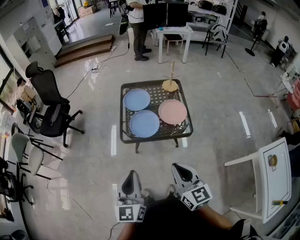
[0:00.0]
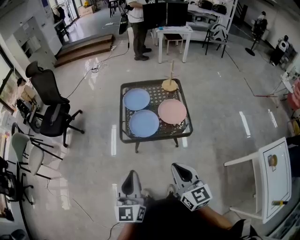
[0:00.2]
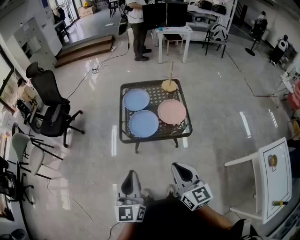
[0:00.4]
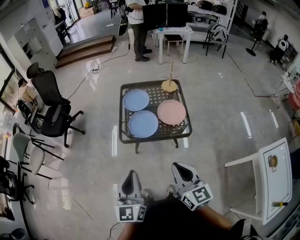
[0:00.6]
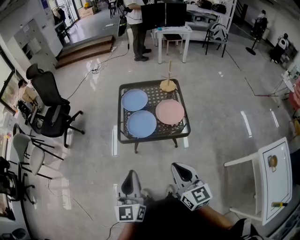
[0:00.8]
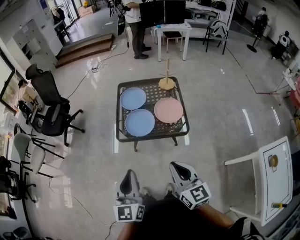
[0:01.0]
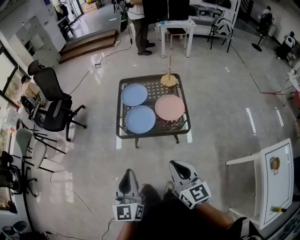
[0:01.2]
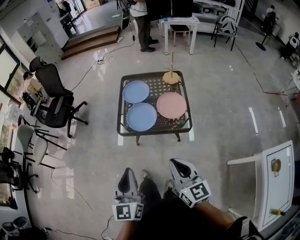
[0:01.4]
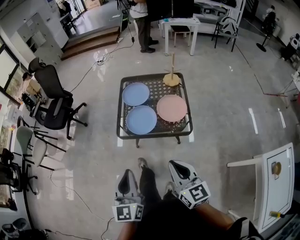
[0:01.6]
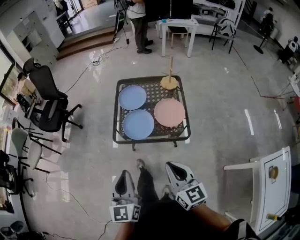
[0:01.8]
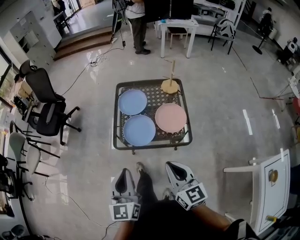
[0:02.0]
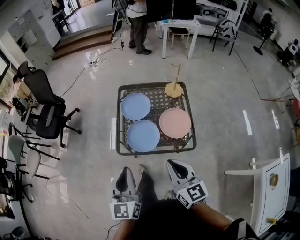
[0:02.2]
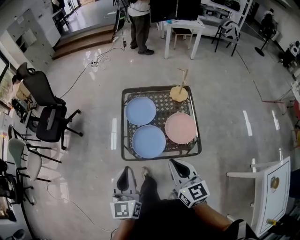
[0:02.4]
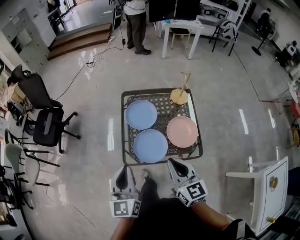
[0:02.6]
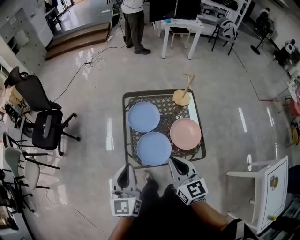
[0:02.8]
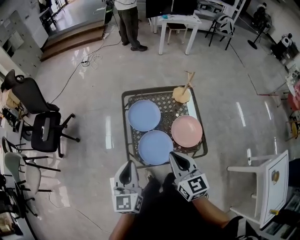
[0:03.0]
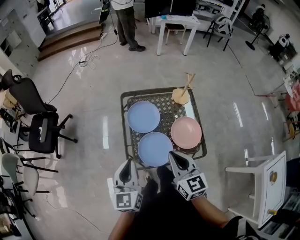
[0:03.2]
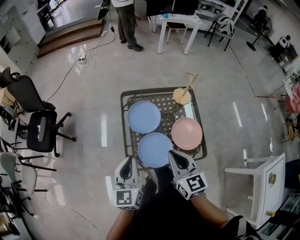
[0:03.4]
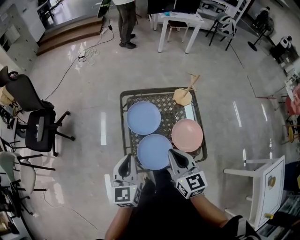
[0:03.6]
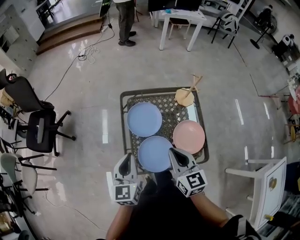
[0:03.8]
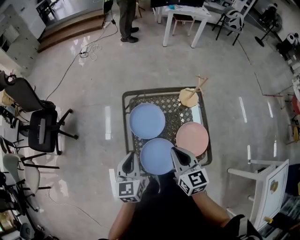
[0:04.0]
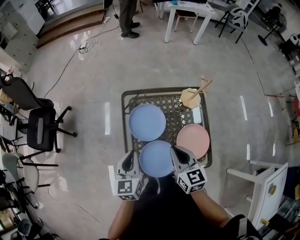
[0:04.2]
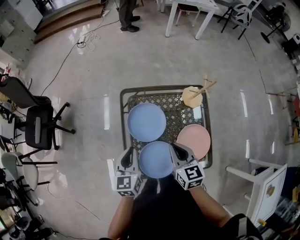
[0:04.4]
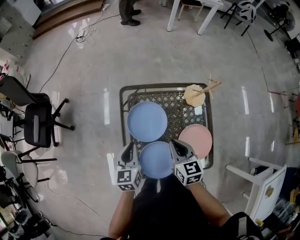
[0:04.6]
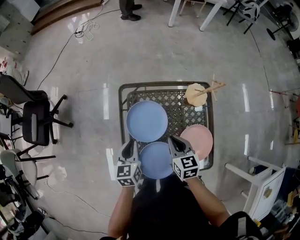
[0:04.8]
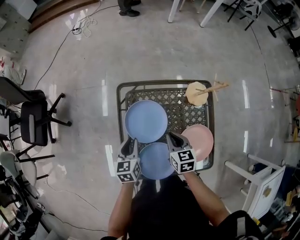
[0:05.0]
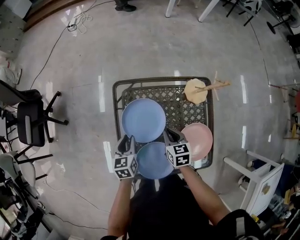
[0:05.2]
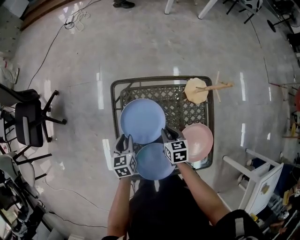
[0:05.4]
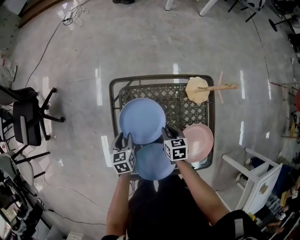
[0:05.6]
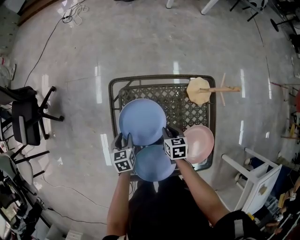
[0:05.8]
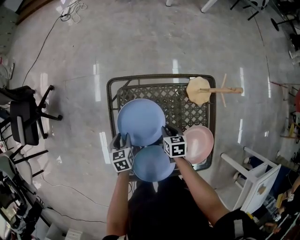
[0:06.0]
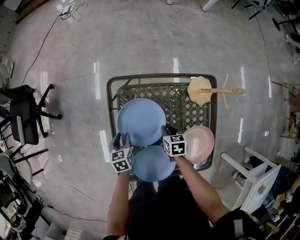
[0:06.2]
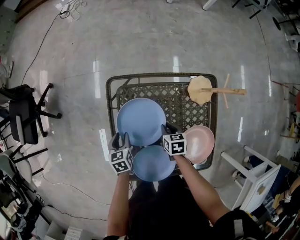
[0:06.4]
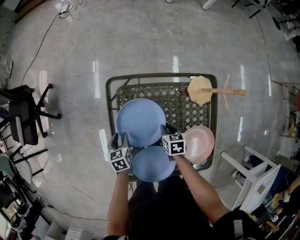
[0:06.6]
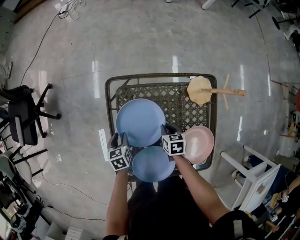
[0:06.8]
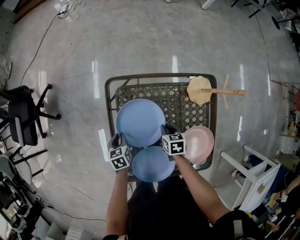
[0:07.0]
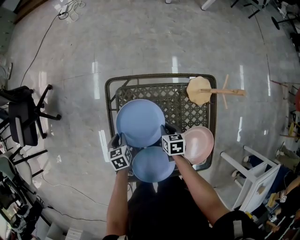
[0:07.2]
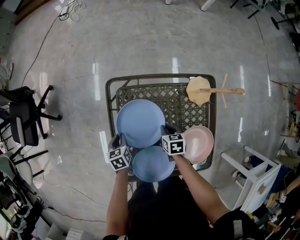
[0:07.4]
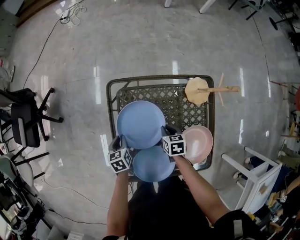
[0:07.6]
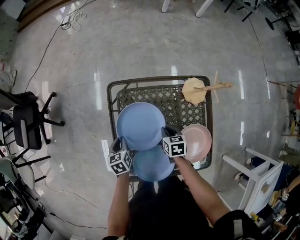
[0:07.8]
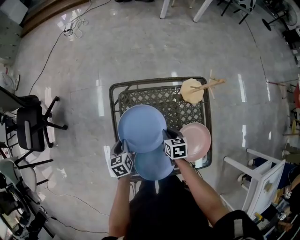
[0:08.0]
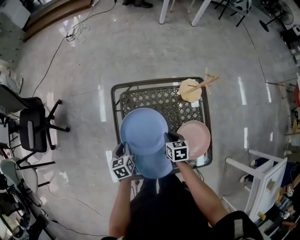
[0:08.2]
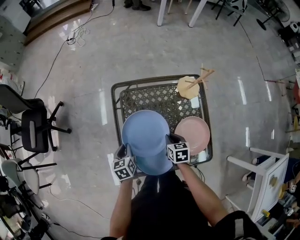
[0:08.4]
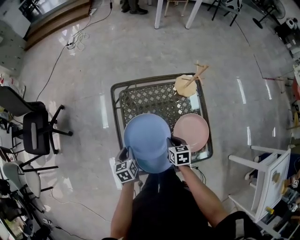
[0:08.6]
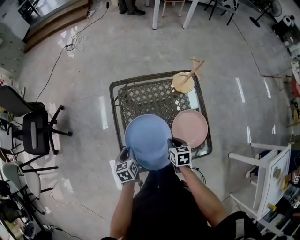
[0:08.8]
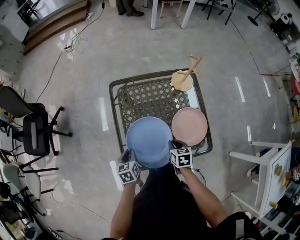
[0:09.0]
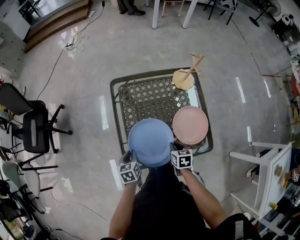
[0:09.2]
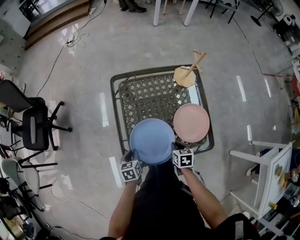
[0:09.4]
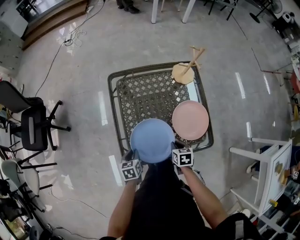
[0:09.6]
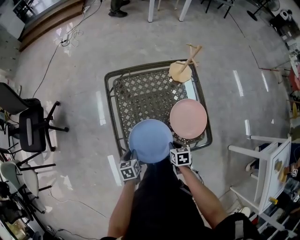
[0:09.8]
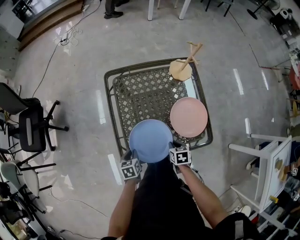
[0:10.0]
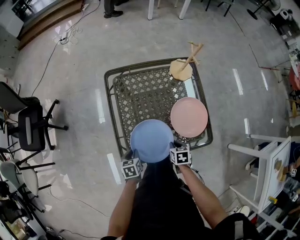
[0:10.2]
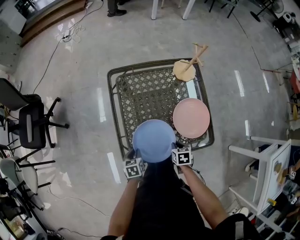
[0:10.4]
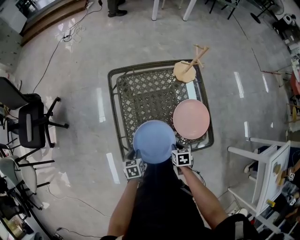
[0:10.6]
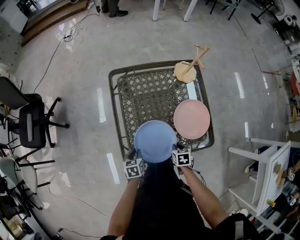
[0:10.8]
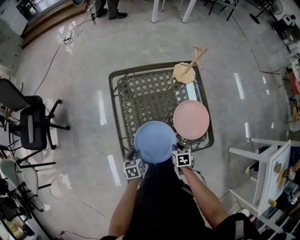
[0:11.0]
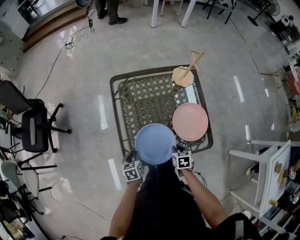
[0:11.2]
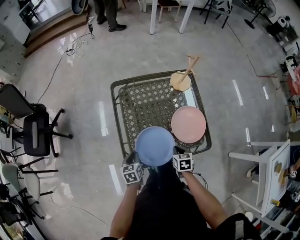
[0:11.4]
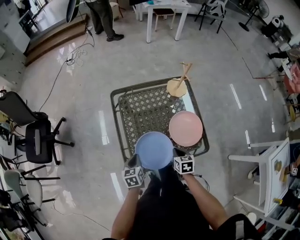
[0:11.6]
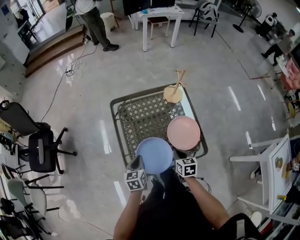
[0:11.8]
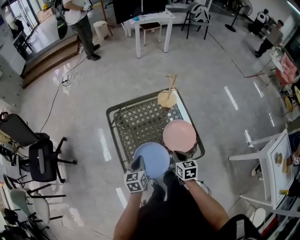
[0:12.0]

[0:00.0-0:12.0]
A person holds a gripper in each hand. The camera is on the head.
0:00.0 to 0:01.6: Both grippers travel together to the right, roughly 5 cm.
0:01.6 to 0:03.0: Both grippers move forward, about 35 cm.
0:03.0 to 0:04.4: The two grippers go some 25 cm forward and downward.
0:04.4 to 0:06.0: Both grippers travel together downward, approximately 25 cm. The left gripper rotates roughly 30 degrees, and opens up. Meanwhile the right gripper points its fingers some 30 degrees further downward.
0:06.0 to 0:07.6: The left gripper closes its fingers.
0:07.6 to 0:09.0: The left gripper shifts about 20 cm backward and upward. Meanwhile the right gripper travels backward by approximately 20 cm.
0:09.0 to 0:10.4: Both grippers move downward and backward, roughly 10 cm.
0:10.4 to 0:12.0: Both grippers travel together upward, some 20 cm. The right gripper swivels approximately 30 degrees; the left gripper rotates about 30 degrees.

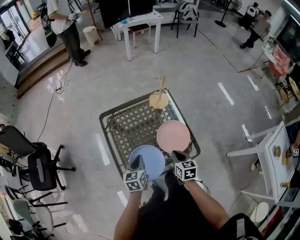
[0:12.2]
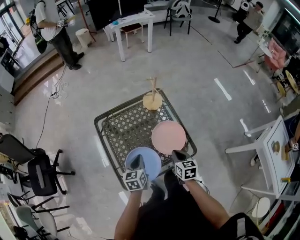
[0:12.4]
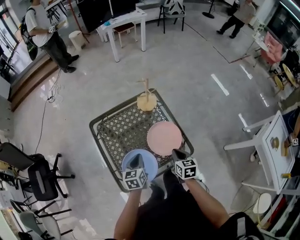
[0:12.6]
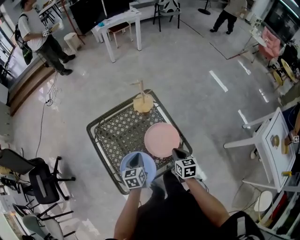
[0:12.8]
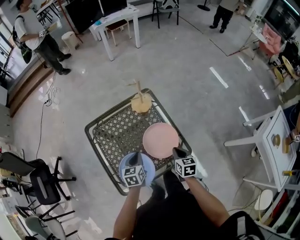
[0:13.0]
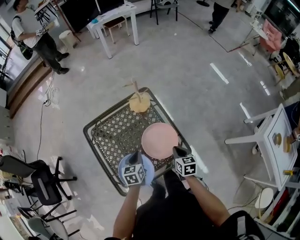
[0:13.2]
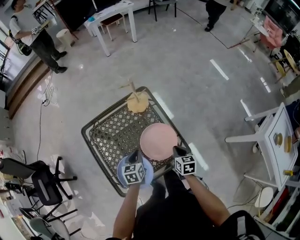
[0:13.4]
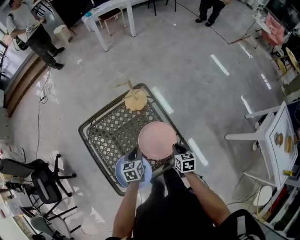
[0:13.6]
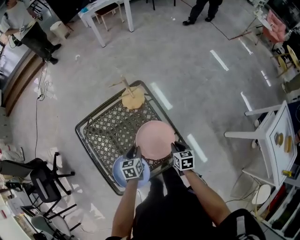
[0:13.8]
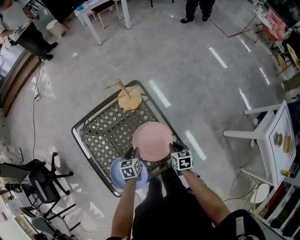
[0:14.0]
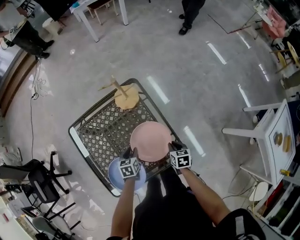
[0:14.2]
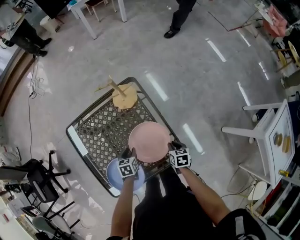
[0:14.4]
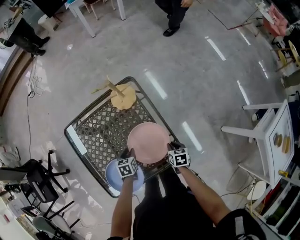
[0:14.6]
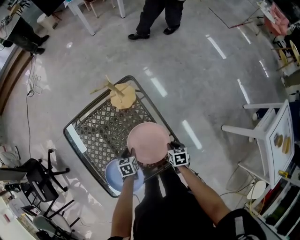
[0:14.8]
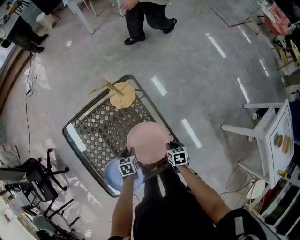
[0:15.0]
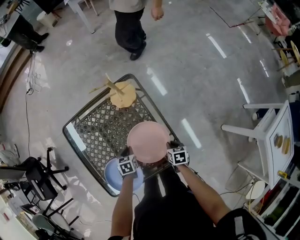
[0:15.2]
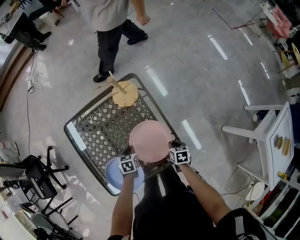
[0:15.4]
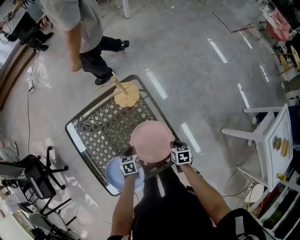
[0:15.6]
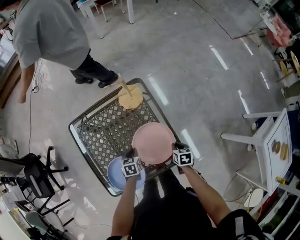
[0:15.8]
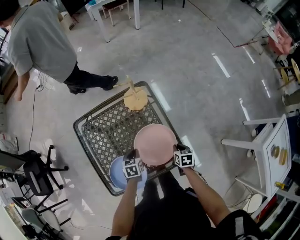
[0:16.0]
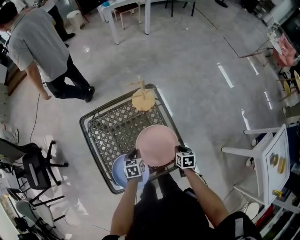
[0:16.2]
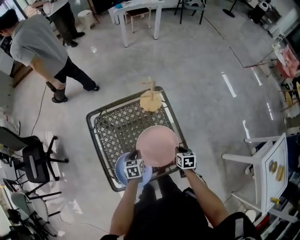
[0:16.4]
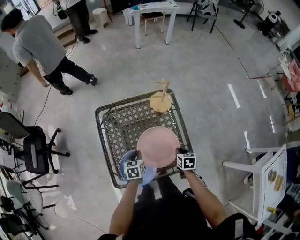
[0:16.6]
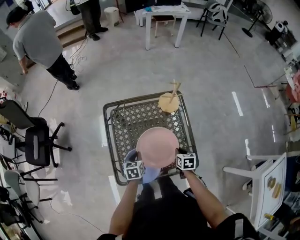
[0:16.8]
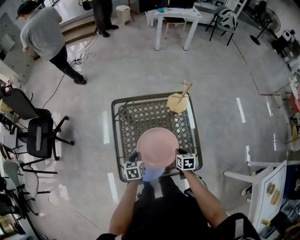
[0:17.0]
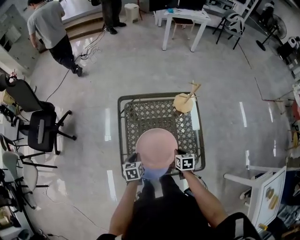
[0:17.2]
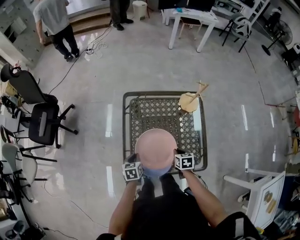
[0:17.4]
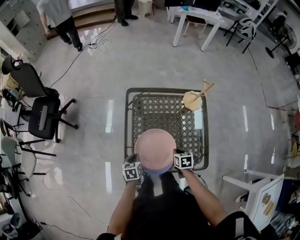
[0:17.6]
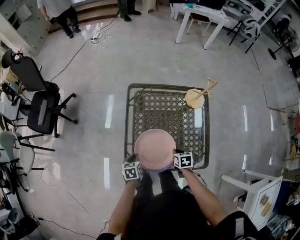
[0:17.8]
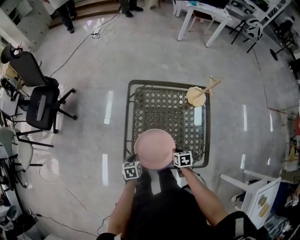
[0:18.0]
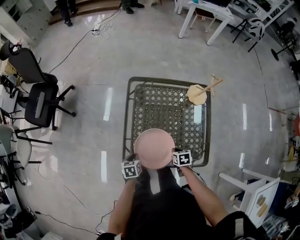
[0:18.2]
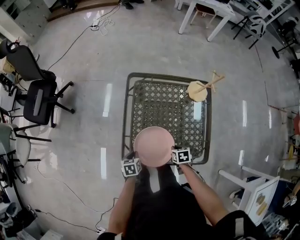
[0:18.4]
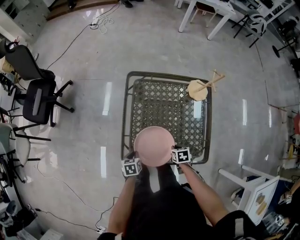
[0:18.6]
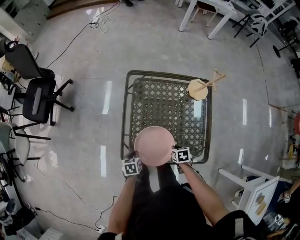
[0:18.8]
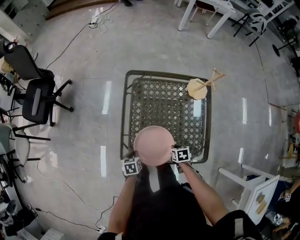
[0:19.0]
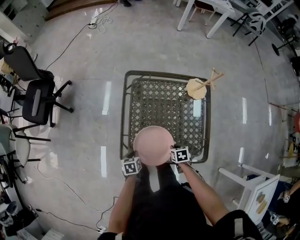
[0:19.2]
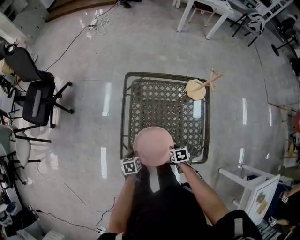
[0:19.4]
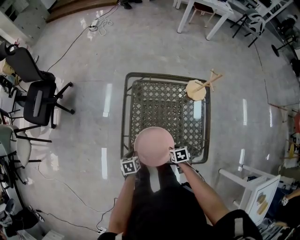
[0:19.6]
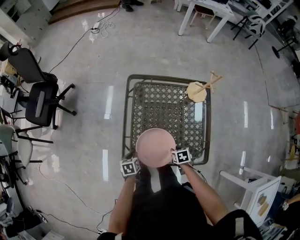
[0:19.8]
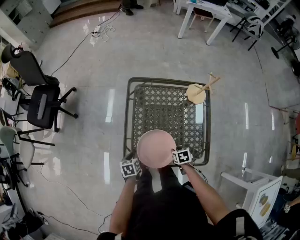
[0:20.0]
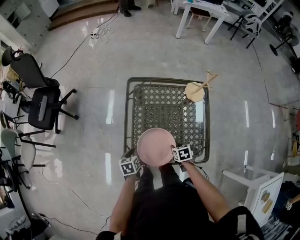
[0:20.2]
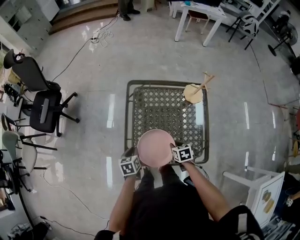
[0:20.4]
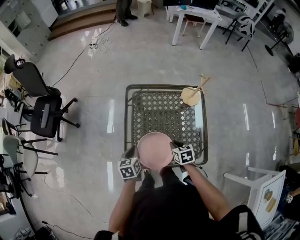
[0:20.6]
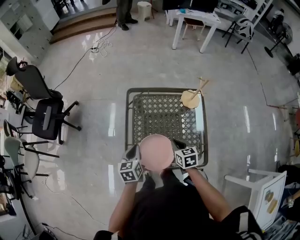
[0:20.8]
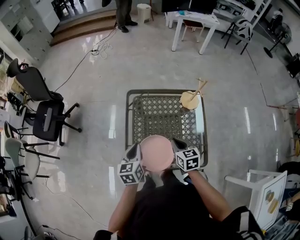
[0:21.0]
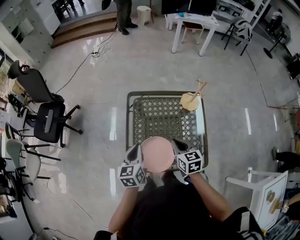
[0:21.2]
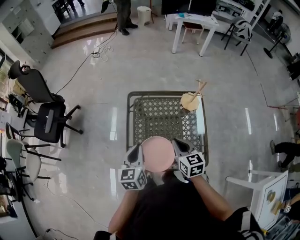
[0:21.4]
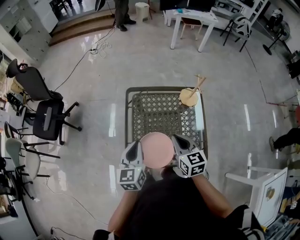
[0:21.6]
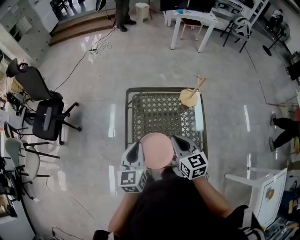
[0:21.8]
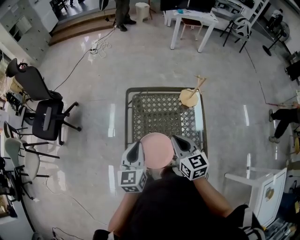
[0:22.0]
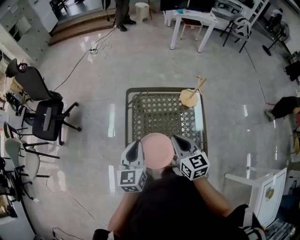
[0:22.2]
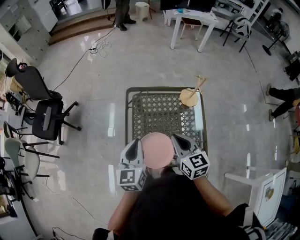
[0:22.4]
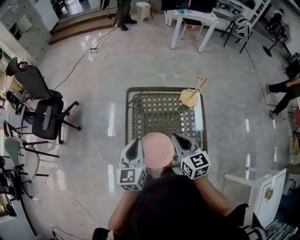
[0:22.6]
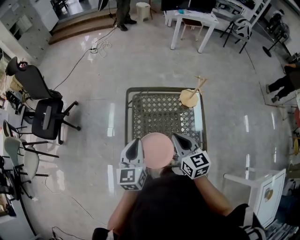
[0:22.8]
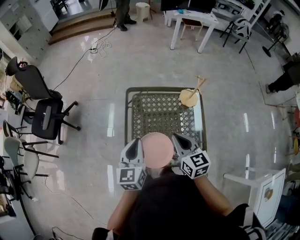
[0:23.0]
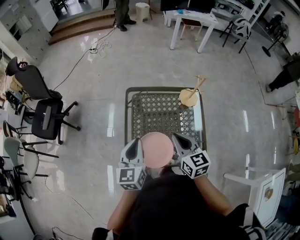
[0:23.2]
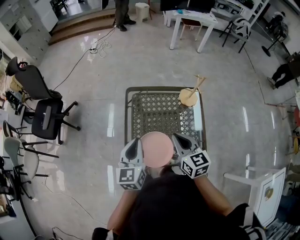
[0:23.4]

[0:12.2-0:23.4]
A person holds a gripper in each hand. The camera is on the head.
0:12.2 to 0:13.8: The right gripper goes some 20 cm to the right, downward and forward; the left gripper heads forward, to the right and downward, covering roughly 20 cm.
0:13.8 to 0:15.4: The two grippers go some 10 cm downward.
0:15.4 to 0:17.0: The right gripper shifts approximately 20 cm to the left and upward, and changes its angle by some 20 degrees. The left gripper heads to the left, upward and backward, covering some 25 cm, and turns by roughly 30 degrees.
0:17.0 to 0:18.6: The left gripper moves backward, downward and to the left, roughly 15 cm. Meanwhile the right gripper shifts roughly 15 cm downward and to the left, and changes its angle by approximately 20 degrees.
0:18.6 to 0:20.2: The left gripper heads upward, covering approximately 5 cm.
0:20.2 to 0:21.8: Both grippers move upward, about 30 cm. The left gripper tips its fingers upward by roughly 40 degrees, while the right gripper angles its fingers upward, by some 40 degrees, and closes its fingers.
0:21.8 to 0:23.4: The grippers make only small movements.
